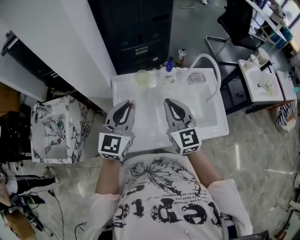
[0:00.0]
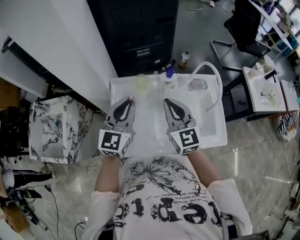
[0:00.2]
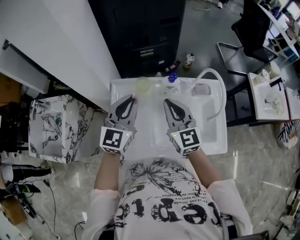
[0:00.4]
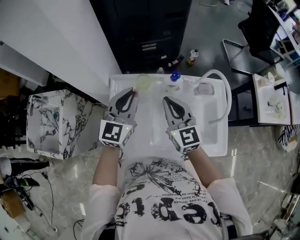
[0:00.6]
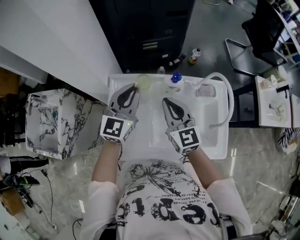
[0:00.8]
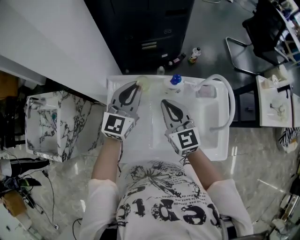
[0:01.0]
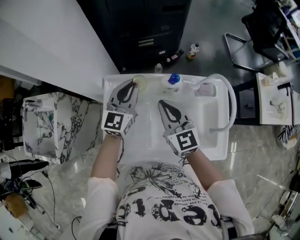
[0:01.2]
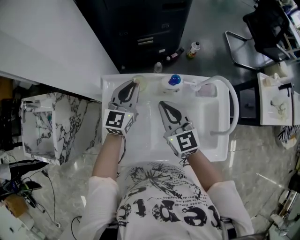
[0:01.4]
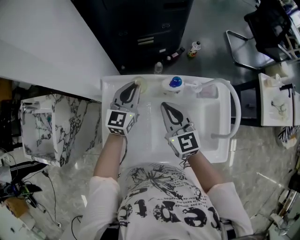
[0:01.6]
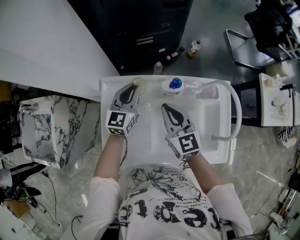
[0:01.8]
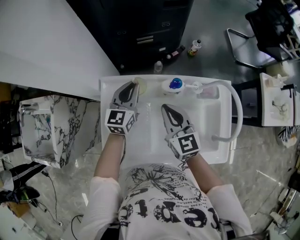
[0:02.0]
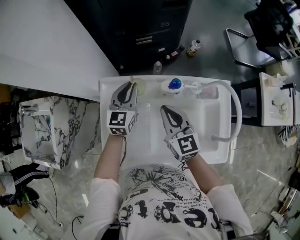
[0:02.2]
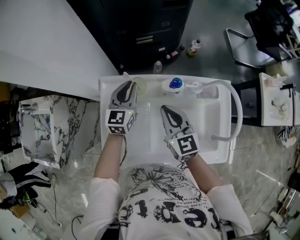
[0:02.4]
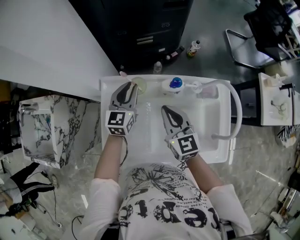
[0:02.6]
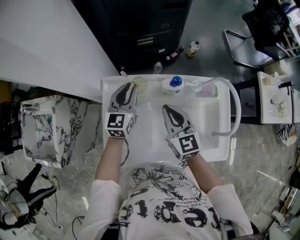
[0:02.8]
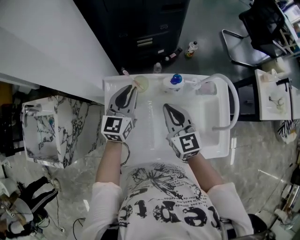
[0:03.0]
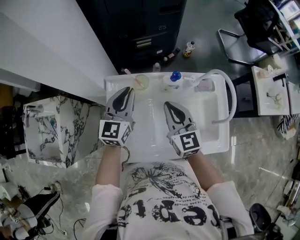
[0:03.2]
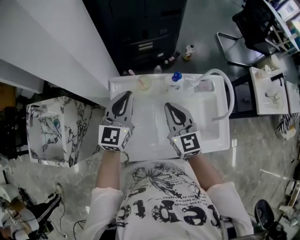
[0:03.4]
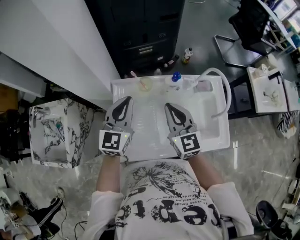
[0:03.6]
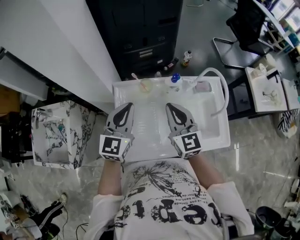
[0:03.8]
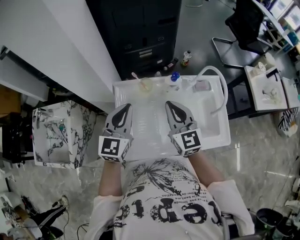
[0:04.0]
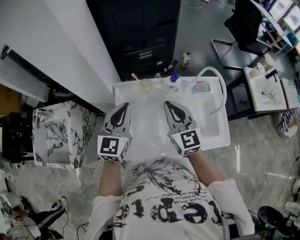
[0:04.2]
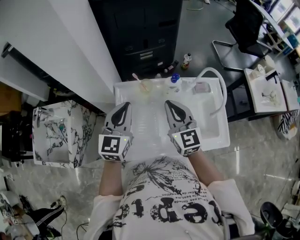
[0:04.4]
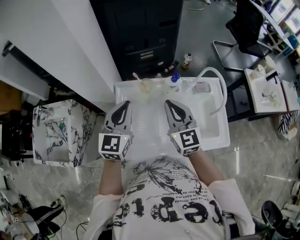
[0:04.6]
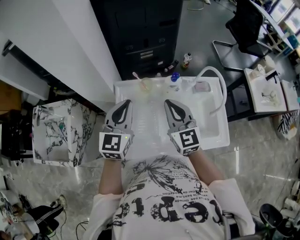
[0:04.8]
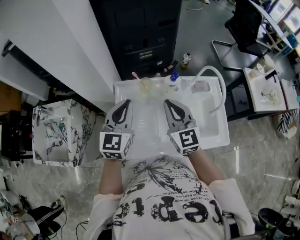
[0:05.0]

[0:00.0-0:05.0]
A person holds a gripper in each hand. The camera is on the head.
0.0 to 1.6 s: Both grippers move forward and downward, roughly 20 cm.
1.6 to 3.4 s: The right gripper moves upward and backward, approximately 5 cm, while the left gripper shifts approximately 15 cm upward, backward and to the left.
3.4 to 5.0 s: The left gripper goes about 5 cm backward; the right gripper is displaced upward by approximately 5 cm.

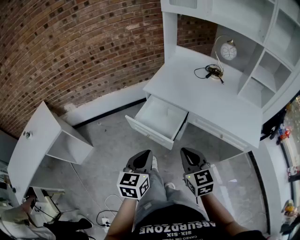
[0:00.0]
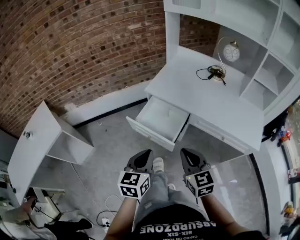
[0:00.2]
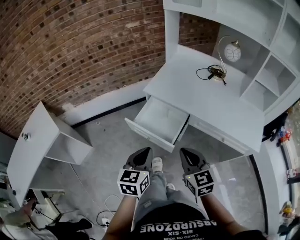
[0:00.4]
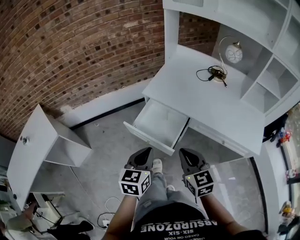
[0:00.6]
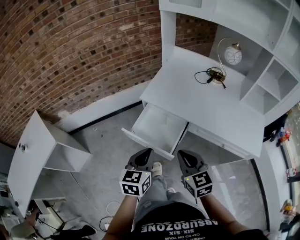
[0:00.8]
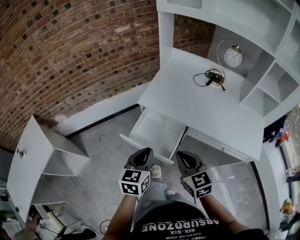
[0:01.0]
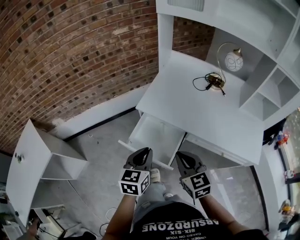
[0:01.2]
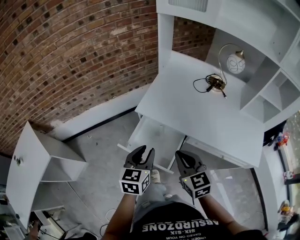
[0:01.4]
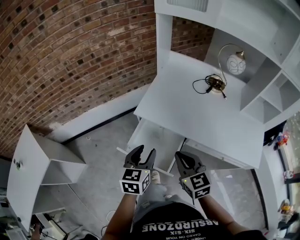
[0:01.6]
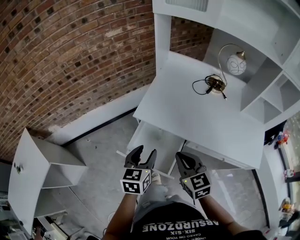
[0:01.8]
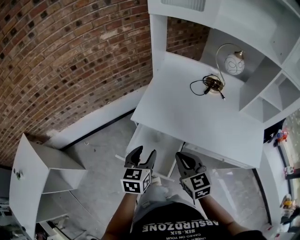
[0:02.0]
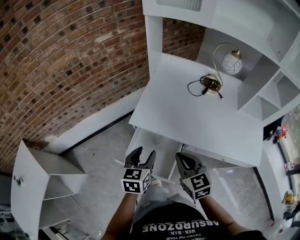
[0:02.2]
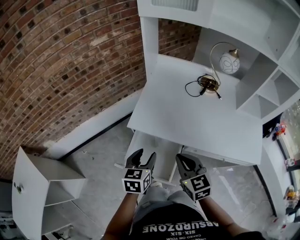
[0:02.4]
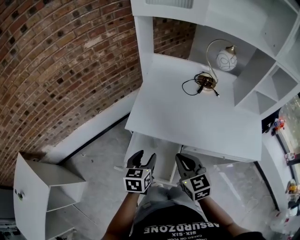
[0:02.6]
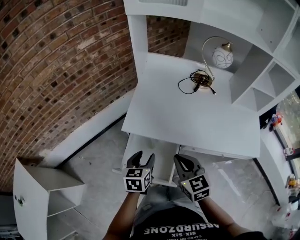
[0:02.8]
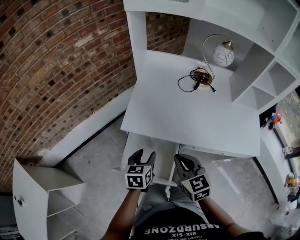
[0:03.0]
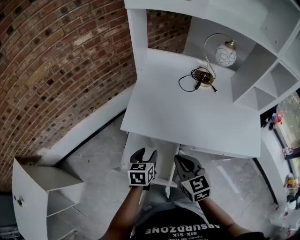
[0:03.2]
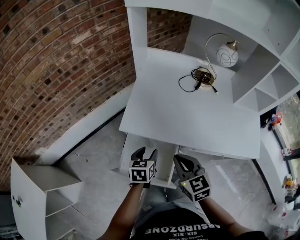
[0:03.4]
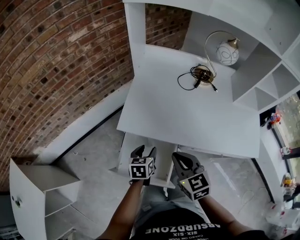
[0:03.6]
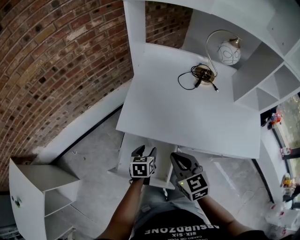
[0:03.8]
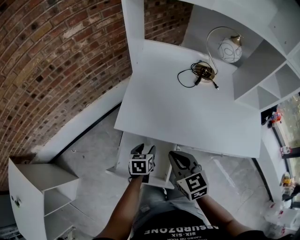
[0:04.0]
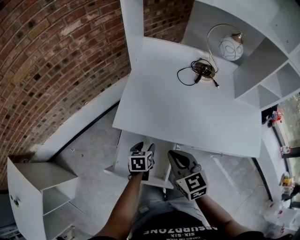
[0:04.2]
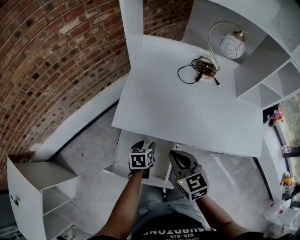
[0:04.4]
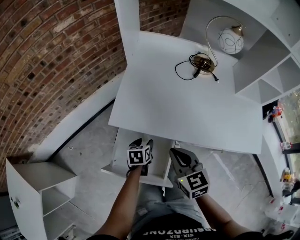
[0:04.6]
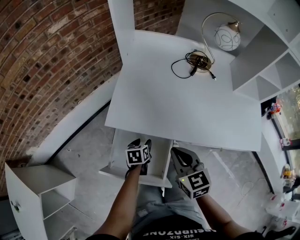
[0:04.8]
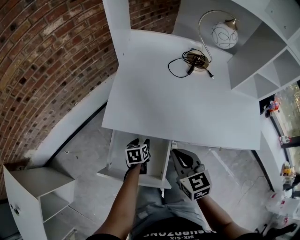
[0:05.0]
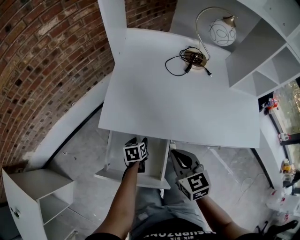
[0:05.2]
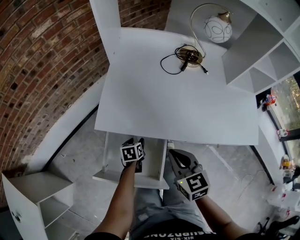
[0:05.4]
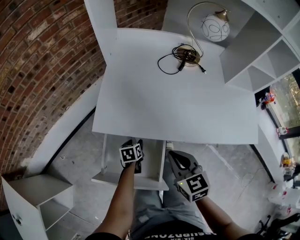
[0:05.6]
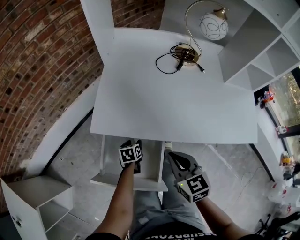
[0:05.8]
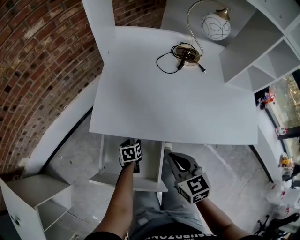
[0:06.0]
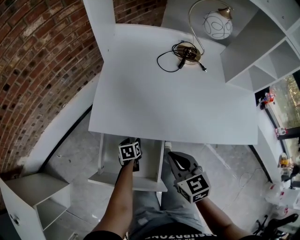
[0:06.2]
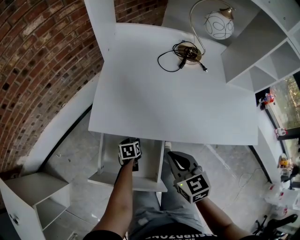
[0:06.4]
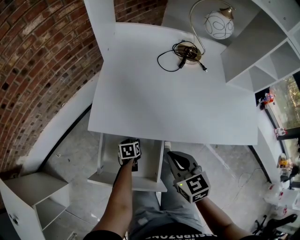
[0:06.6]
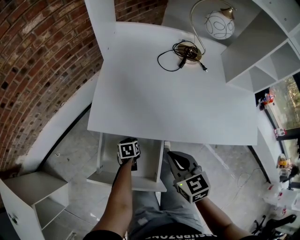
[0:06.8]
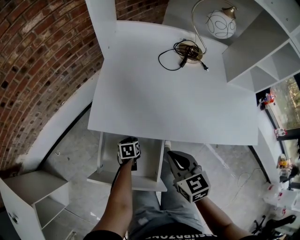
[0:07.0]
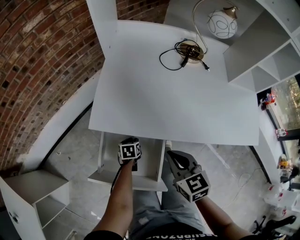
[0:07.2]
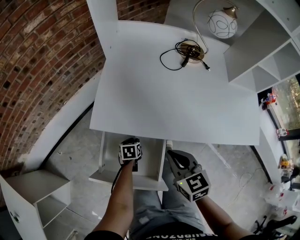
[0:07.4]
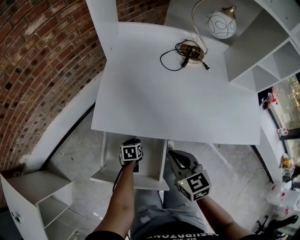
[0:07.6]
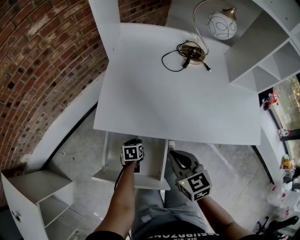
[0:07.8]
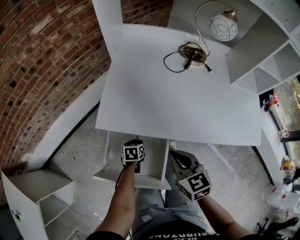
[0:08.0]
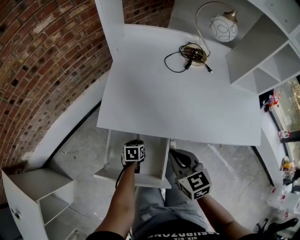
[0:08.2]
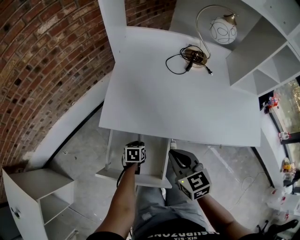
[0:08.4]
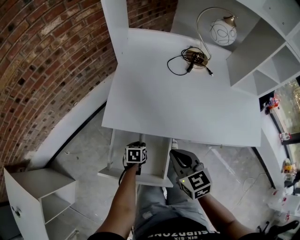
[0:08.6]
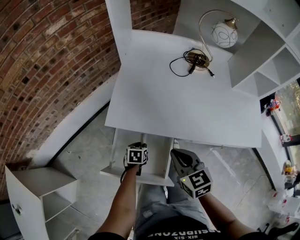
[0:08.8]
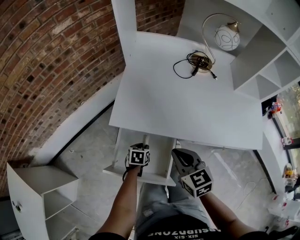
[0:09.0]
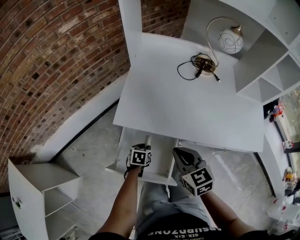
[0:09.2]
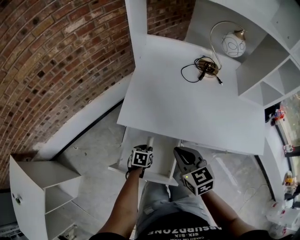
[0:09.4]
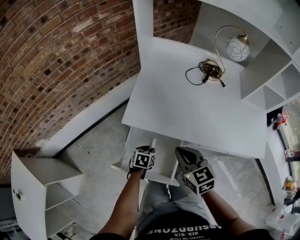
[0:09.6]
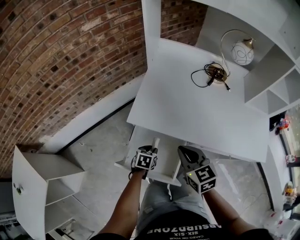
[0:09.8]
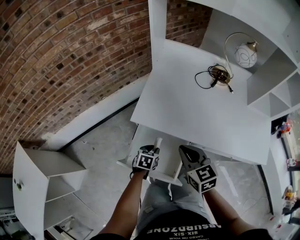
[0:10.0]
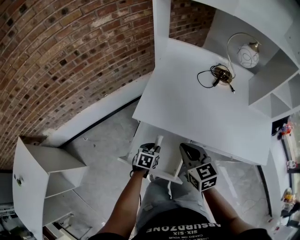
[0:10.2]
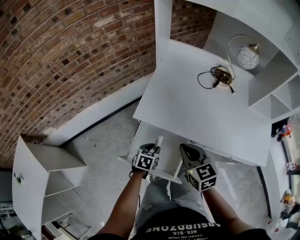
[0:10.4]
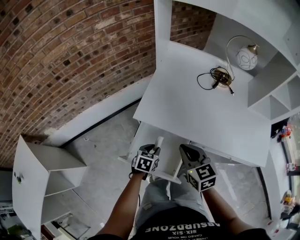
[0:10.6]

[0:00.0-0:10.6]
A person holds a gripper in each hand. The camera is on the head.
0.0 to 1.6 s: The two grippers go roughly 25 cm forward. The left gripper opens up.
1.6 to 3.0 s: The left gripper moves downward and forward, some 15 cm, while the right gripper heads forward, covering about 5 cm.
3.0 to 4.6 s: The left gripper is displaced downward by about 15 cm; the right gripper heads downward, covering some 5 cm.
4.6 to 6.0 s: The left gripper shifts roughly 10 cm downward, while the right gripper ends up about 5 cm from where it was.
6.0 to 7.6 s: The left gripper closes.
7.6 to 9.0 s: The left gripper shifts about 5 cm upward. Meanwhile the right gripper moves some 5 cm.
9.0 to 10.6 s: The left gripper shifts approximately 10 cm upward, while the right gripper moves approximately 5 cm.

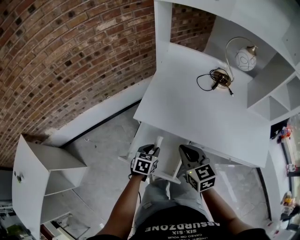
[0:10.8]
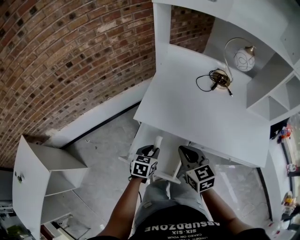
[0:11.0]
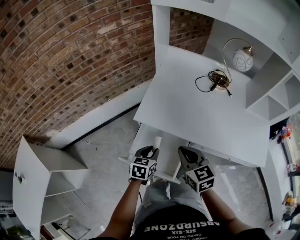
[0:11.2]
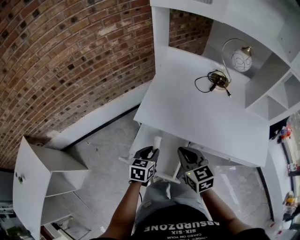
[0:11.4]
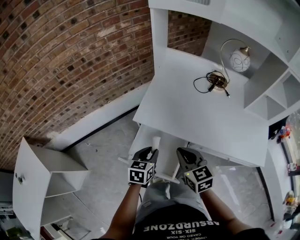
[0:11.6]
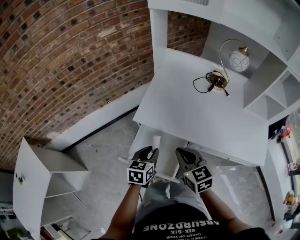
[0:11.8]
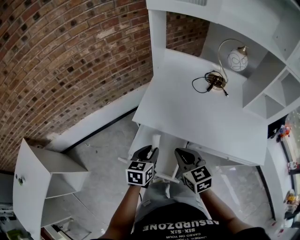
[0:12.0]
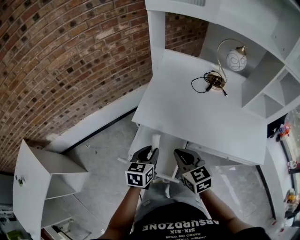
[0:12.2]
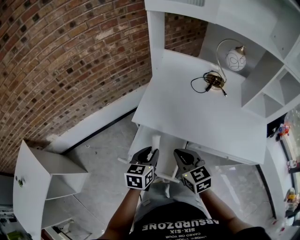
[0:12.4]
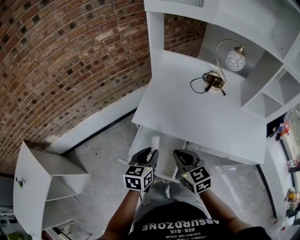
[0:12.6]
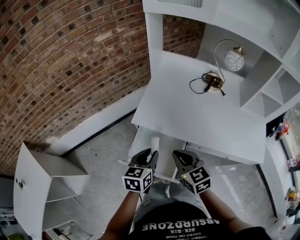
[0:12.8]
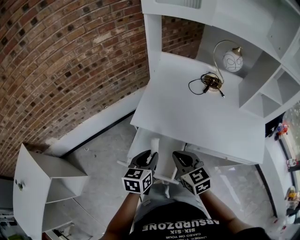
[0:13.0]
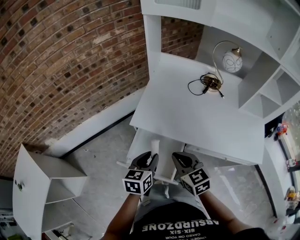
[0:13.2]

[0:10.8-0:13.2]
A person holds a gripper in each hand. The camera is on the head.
10.8 to 12.0 s: The left gripper heads upward, covering roughly 10 cm.
12.0 to 13.2 s: The grippers move only a little.

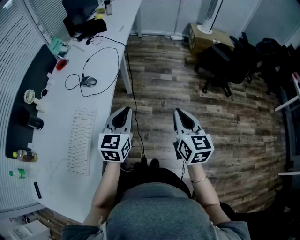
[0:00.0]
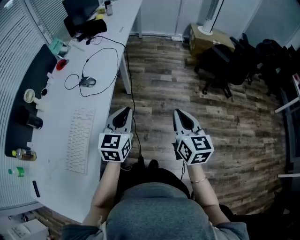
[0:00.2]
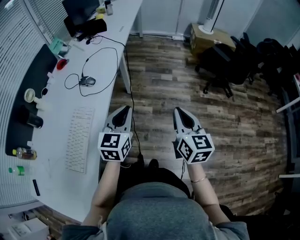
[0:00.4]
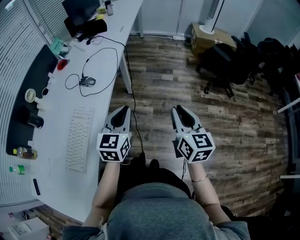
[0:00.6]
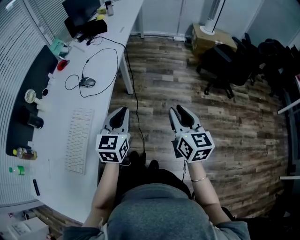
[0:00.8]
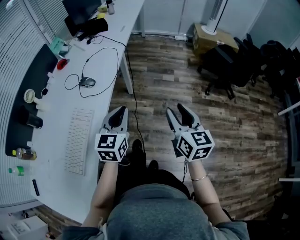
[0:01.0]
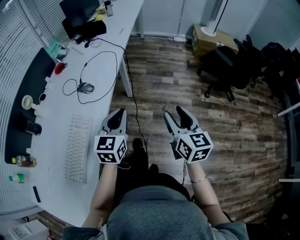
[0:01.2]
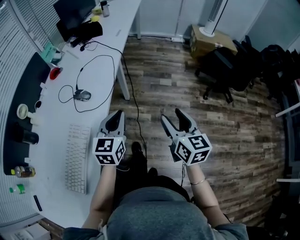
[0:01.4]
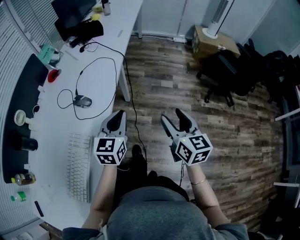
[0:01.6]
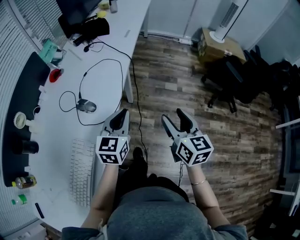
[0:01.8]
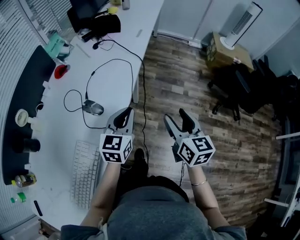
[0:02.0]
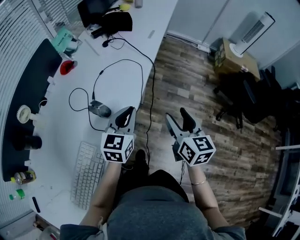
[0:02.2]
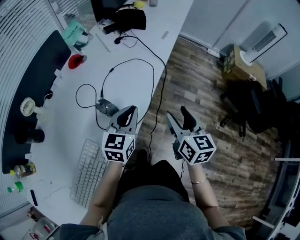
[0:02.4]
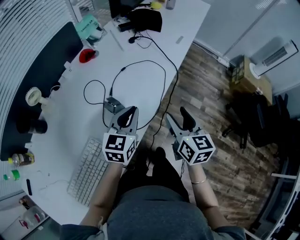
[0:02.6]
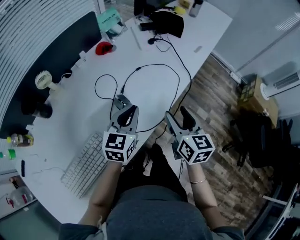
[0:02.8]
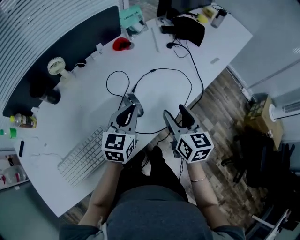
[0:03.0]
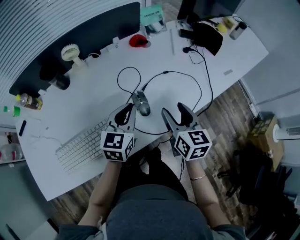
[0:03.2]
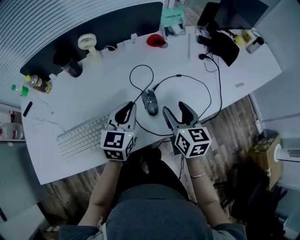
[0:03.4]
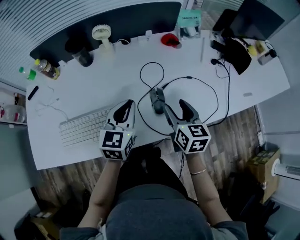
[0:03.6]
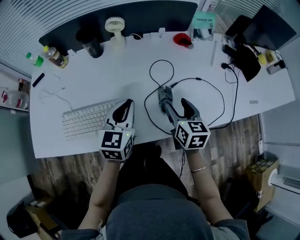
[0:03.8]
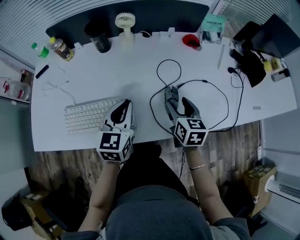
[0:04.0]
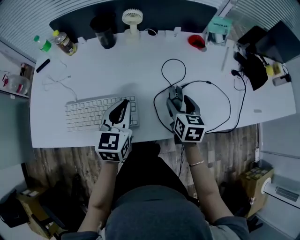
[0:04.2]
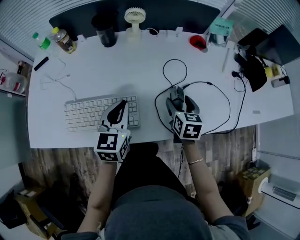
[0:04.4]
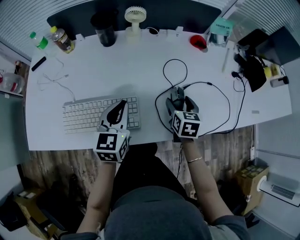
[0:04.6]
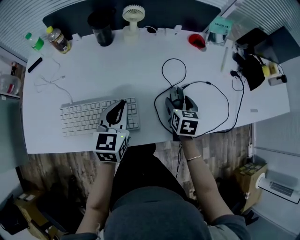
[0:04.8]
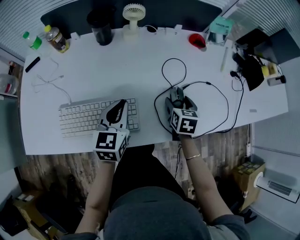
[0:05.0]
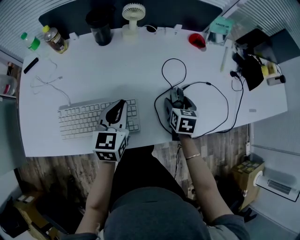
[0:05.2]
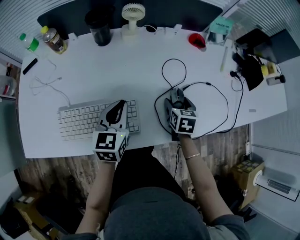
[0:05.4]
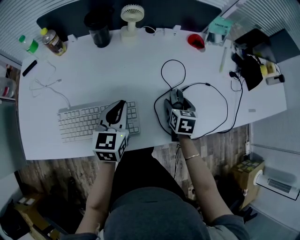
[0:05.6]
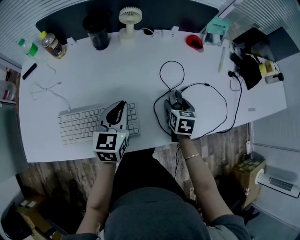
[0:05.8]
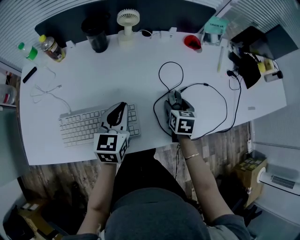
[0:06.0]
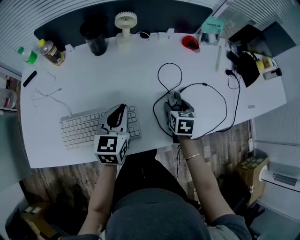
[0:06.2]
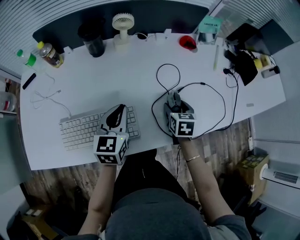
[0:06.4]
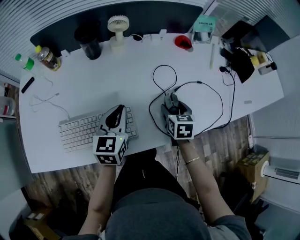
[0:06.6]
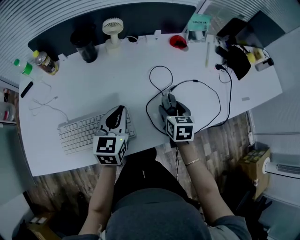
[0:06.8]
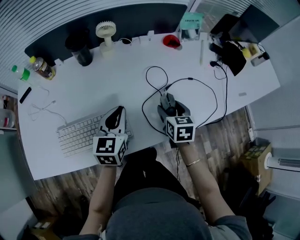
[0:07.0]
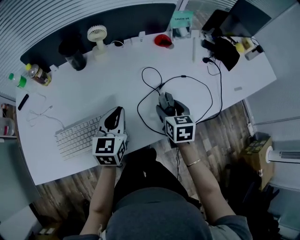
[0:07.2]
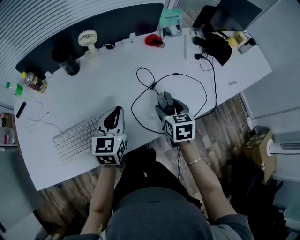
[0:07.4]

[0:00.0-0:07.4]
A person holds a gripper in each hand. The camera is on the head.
0.0 to 1.4 s: The grippers both shift forward by some 10 cm. The right gripper opens up.
1.4 to 3.0 s: The right gripper moves some 40 cm, and rotates approximately 40 degrees, while the left gripper shifts by some 25 cm, and turns by about 40 degrees.
3.0 to 4.4 s: The left gripper shifts by roughly 20 cm, and turns by about 40 degrees. The right gripper ends up roughly 20 cm from where it was, and turns by some 30 degrees.
4.4 to 6.0 s: The right gripper heads downward, covering roughly 5 cm.
6.0 to 7.4 s: The right gripper goes approximately 10 cm upward and backward. Meanwhile the left gripper shifts about 10 cm to the right.
